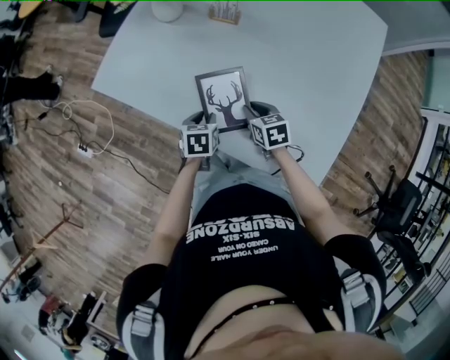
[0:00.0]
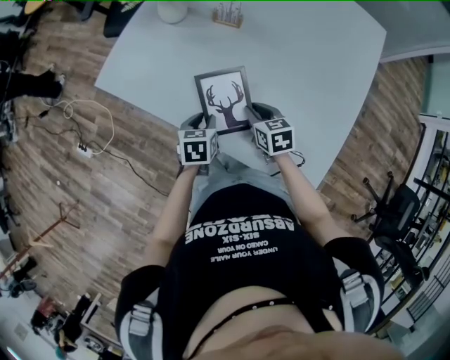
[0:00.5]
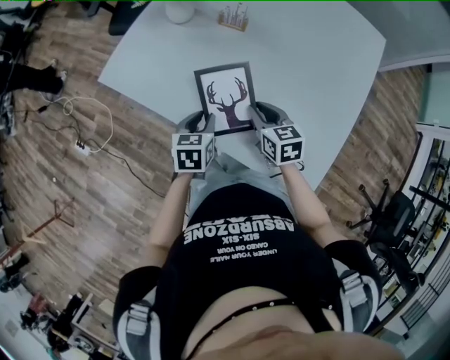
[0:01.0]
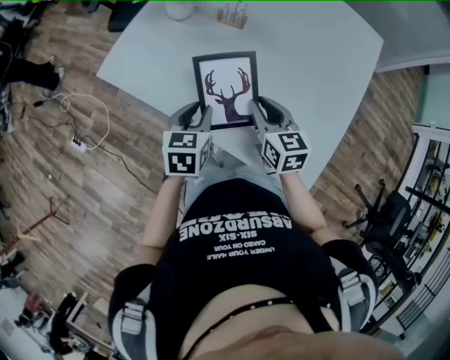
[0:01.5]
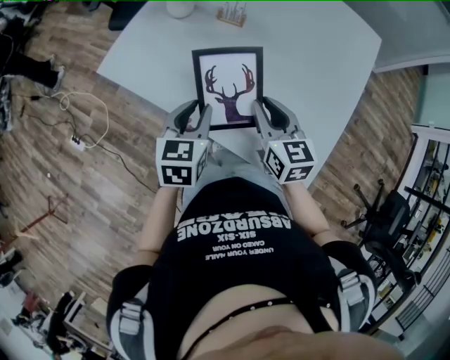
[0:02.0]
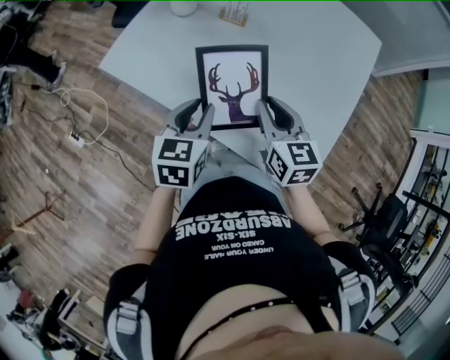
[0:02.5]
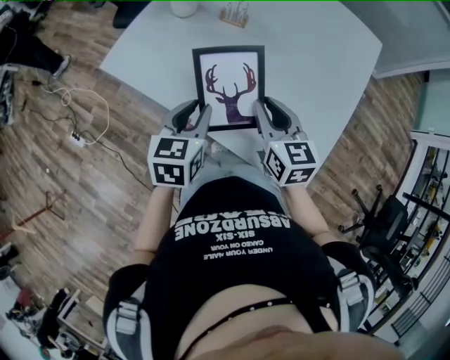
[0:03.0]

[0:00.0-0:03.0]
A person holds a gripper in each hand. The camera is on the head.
0:00.0 to 0:01.5: Both grippers travel together upward, approximately 15 cm. The right gripper swivels about 20 degrees.
0:01.5 to 0:03.0: Both grippers travel together upward, approximately 5 cm.

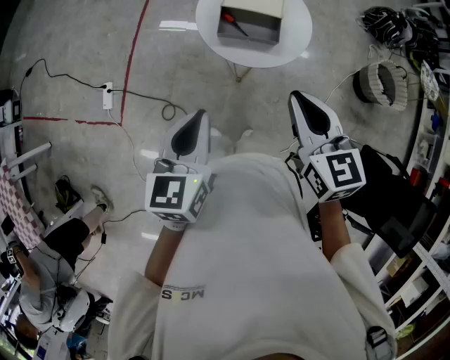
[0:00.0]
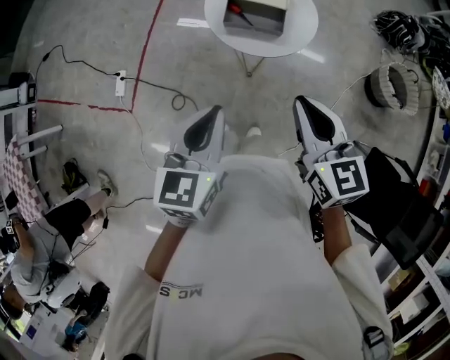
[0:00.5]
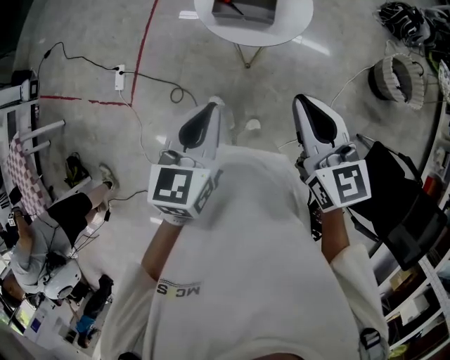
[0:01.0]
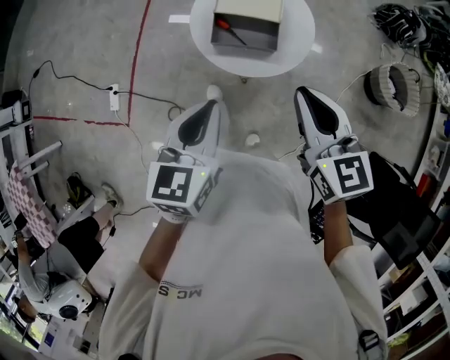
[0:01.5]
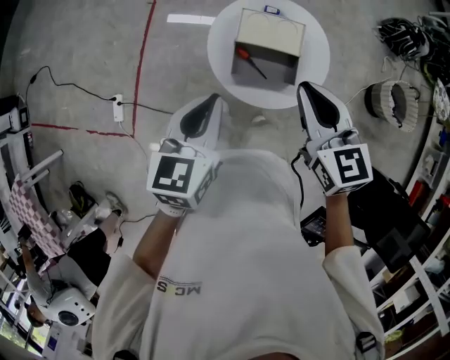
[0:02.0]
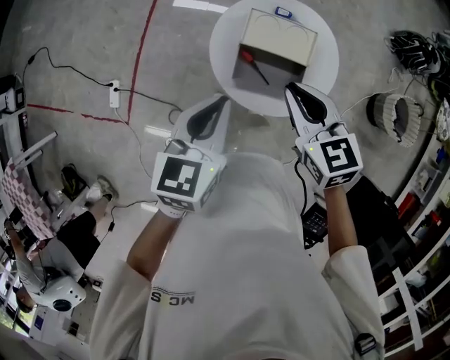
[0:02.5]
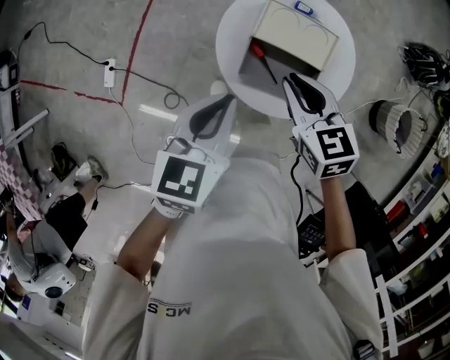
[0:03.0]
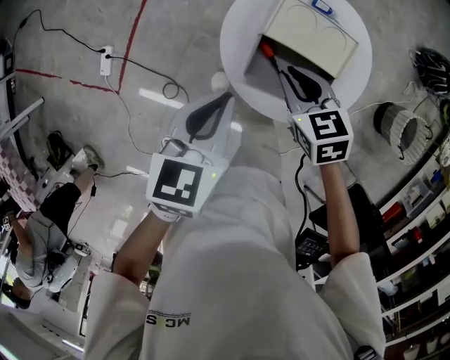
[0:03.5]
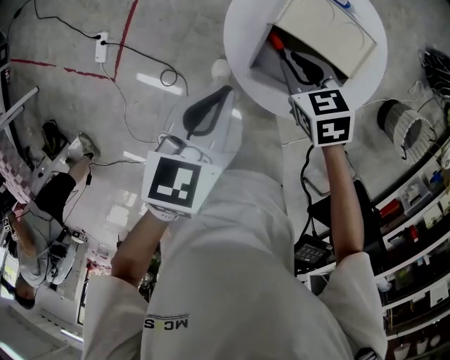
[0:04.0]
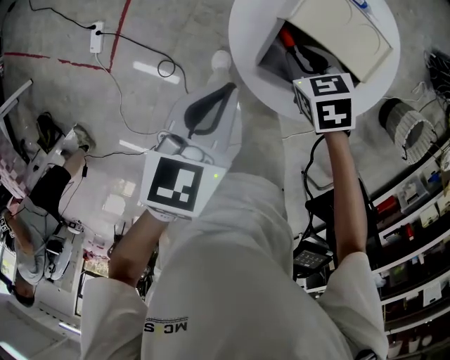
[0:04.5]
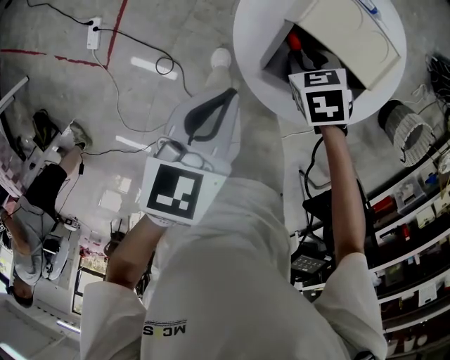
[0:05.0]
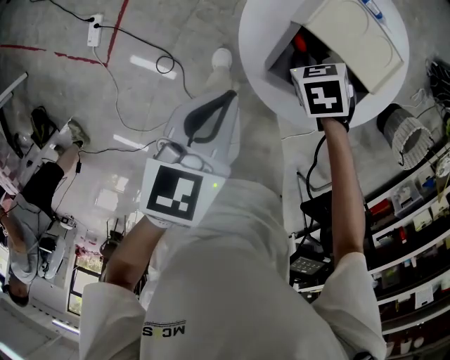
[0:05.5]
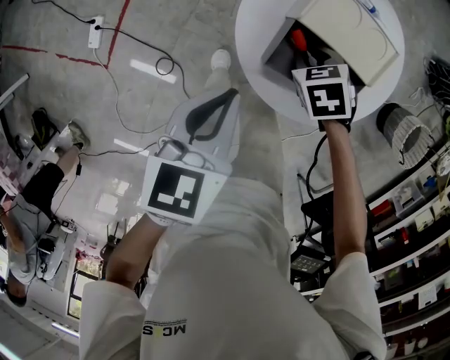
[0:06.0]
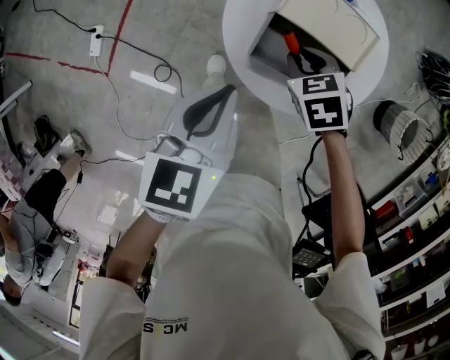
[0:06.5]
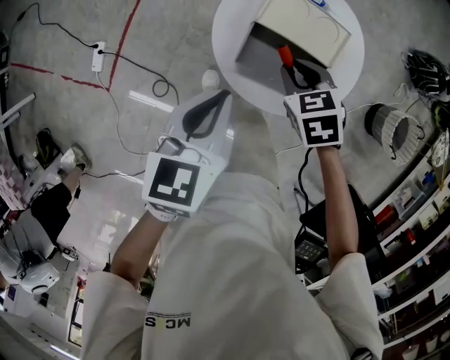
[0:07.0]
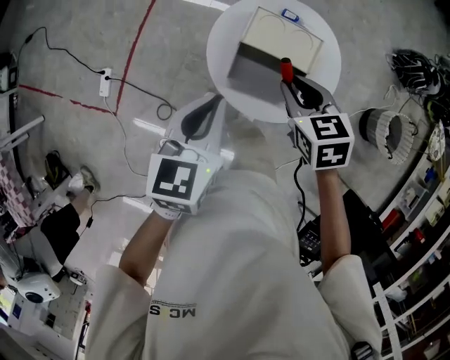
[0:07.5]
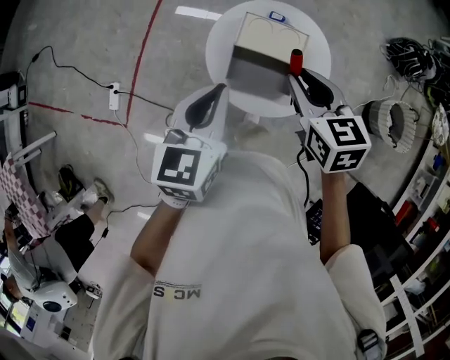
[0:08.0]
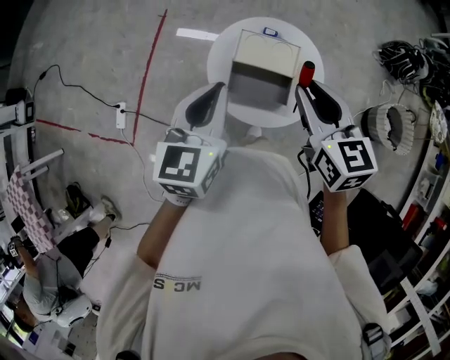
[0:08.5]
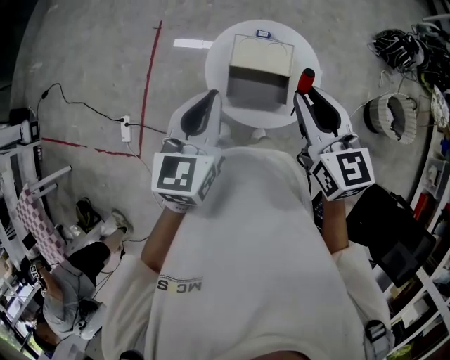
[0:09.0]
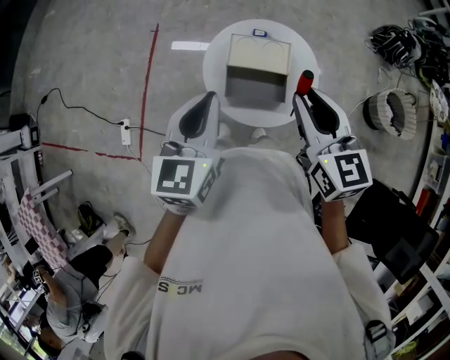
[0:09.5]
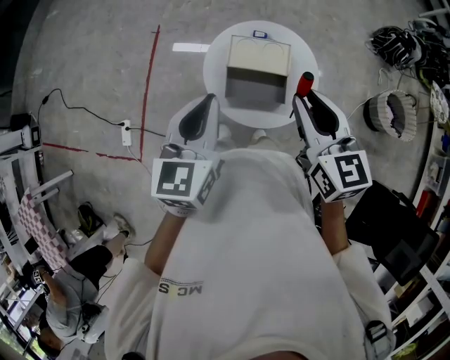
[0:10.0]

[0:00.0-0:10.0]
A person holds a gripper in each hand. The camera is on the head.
0:00.0 to 0:02.0: The two grippers go about 25 cm forward.
0:02.0 to 0:04.0: The right gripper travels downward by about 35 cm, and points its fingers approximately 30 degrees further downward. Meanwhile the left gripper heads downward and forward, covering about 25 cm.
0:04.0 to 0:06.0: The left gripper shifts by some 5 cm; the right gripper shifts roughly 10 cm downward.
0:06.0 to 0:08.0: The right gripper is displaced upward by roughly 40 cm, and tips its fingers upward by about 40 degrees. The left gripper shifts approximately 25 cm upward, and rotates approximately 20 degrees.
0:08.0 to 0:10.0: The right gripper heads upward and backward, covering roughly 10 cm, and changes its angle by some 20 degrees; the left gripper moves upward, approximately 5 cm.

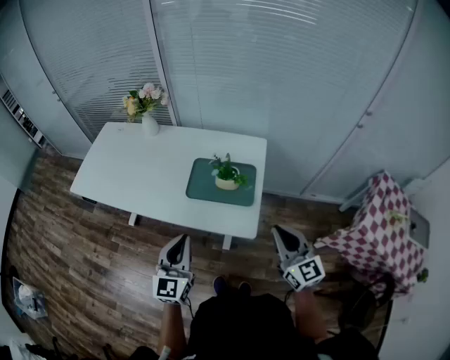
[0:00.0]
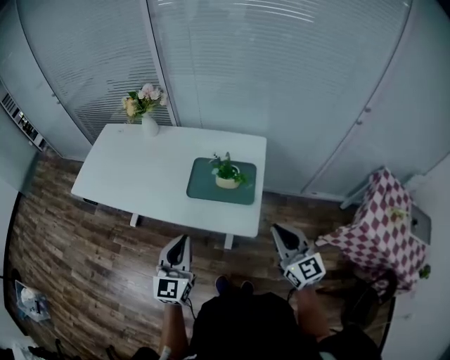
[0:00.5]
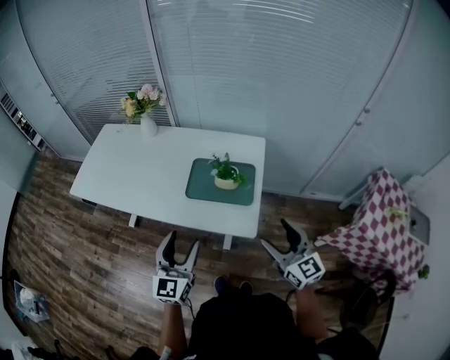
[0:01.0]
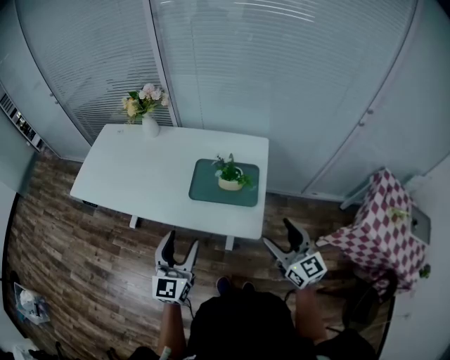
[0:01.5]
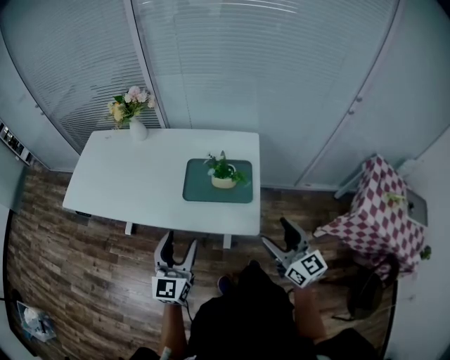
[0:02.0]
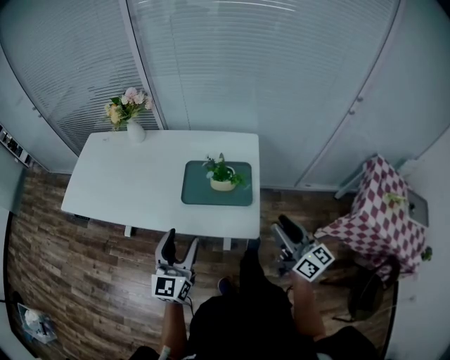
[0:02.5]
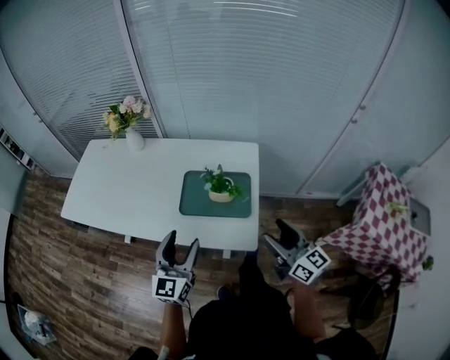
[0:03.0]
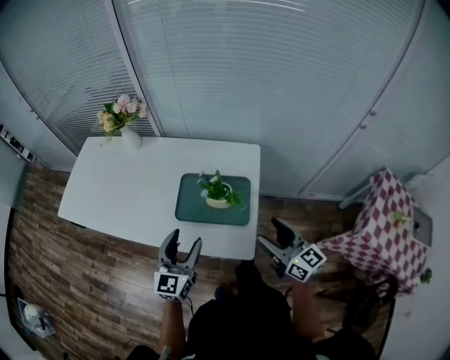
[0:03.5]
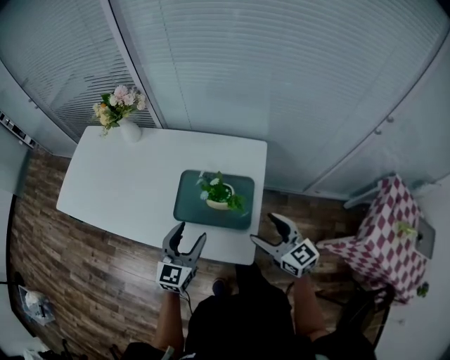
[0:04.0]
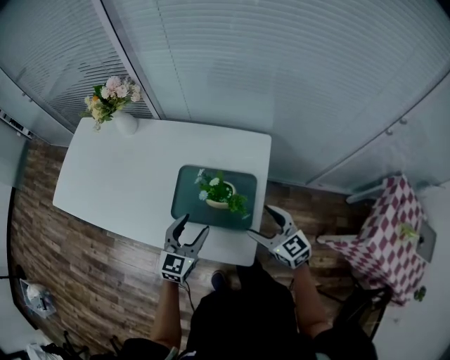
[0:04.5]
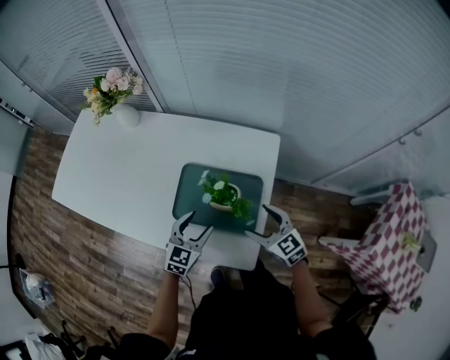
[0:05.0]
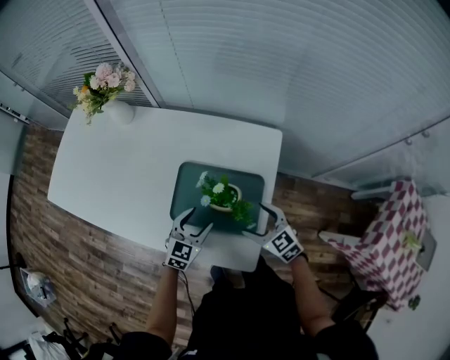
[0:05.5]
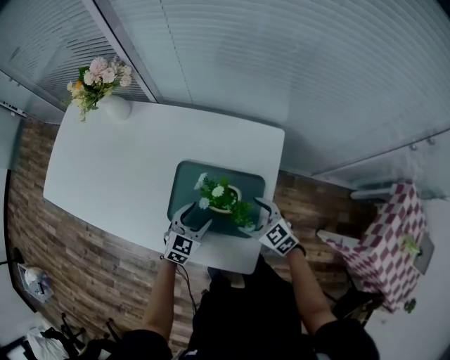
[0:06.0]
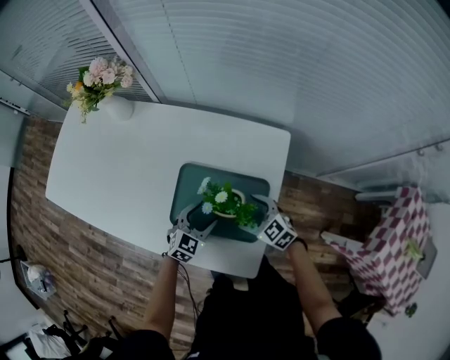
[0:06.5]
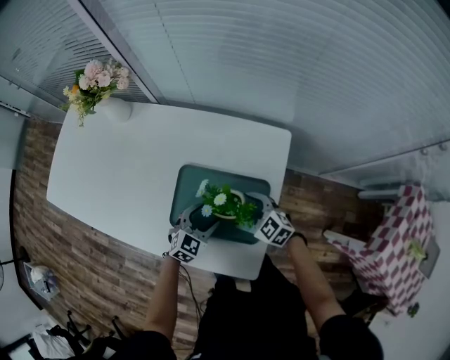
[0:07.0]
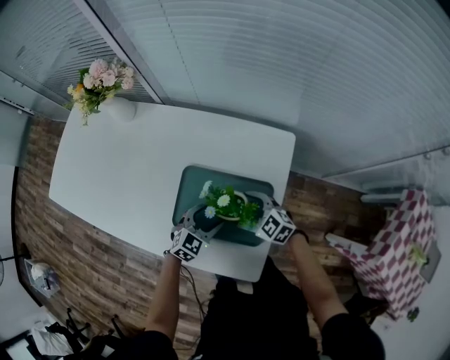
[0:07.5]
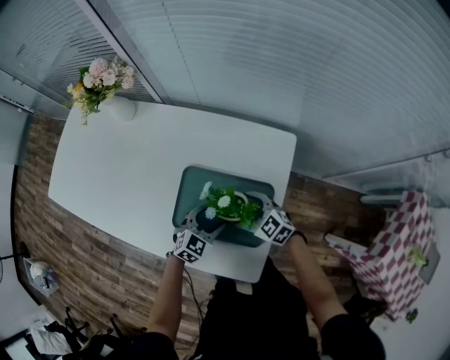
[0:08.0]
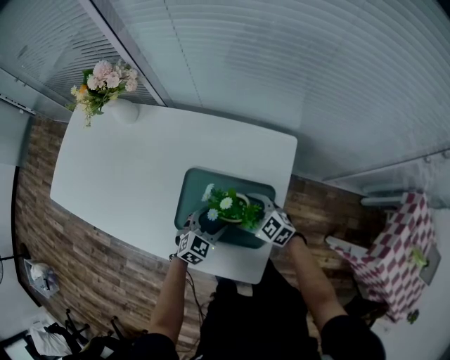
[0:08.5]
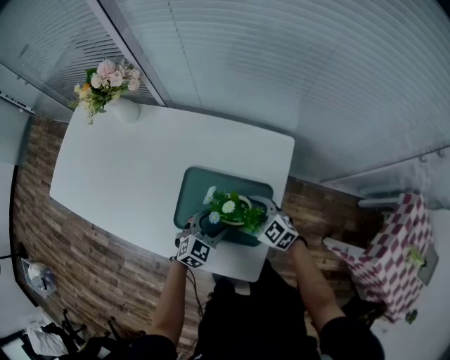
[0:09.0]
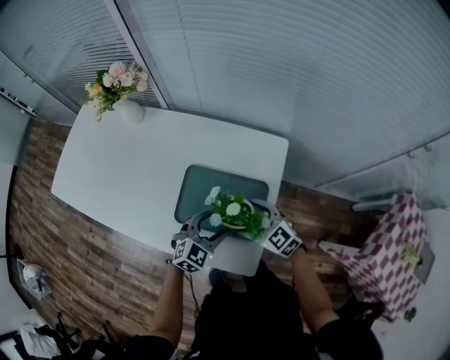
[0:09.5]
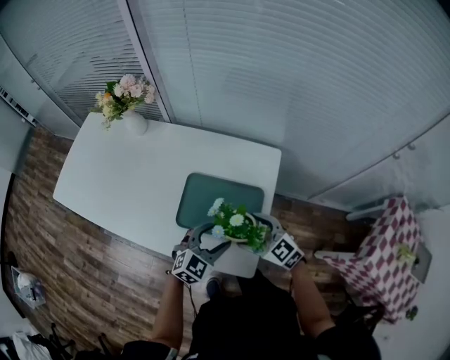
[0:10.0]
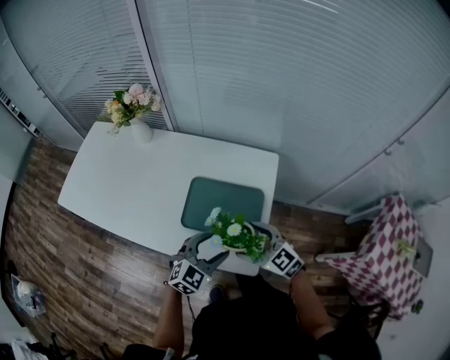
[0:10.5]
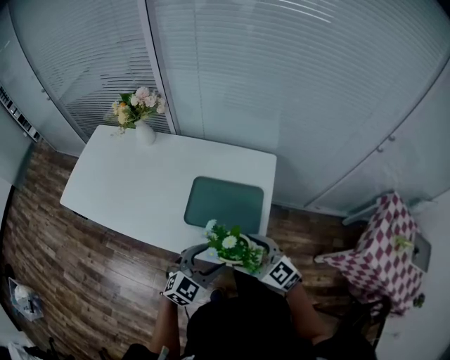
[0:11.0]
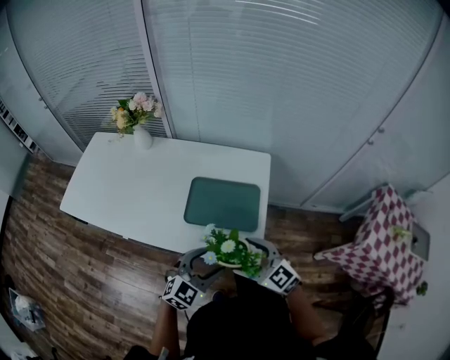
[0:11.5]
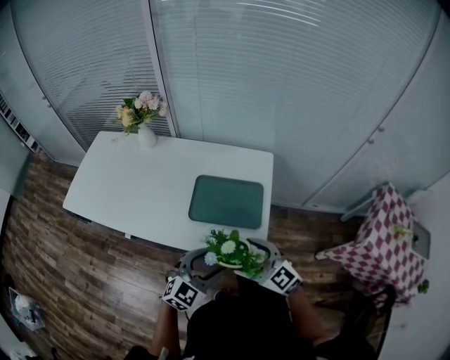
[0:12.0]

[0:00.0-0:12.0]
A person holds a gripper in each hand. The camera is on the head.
0:00.0 to 0:02.0: The right gripper opens. Meanwhile the left gripper opens its fingers.
0:02.0 to 0:04.0: The right gripper travels forward and downward by approximately 15 cm, changes its angle by some 20 degrees, and closes and opens again. Meanwhile the left gripper goes about 20 cm forward, to the right and downward.
0:04.0 to 0:06.0: The grippers both shift downward and forward by about 20 cm. The right gripper rotates roughly 30 degrees. The left gripper rotates roughly 20 degrees.
0:06.0 to 0:08.0: The right gripper changes place by roughly 5 cm.
0:08.0 to 0:10.0: The grippers both shift upward and backward by about 15 cm.
0:10.0 to 0:12.0: The grippers both shift backward, to the left and upward by approximately 20 cm.

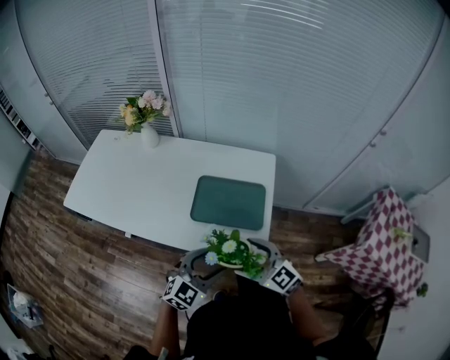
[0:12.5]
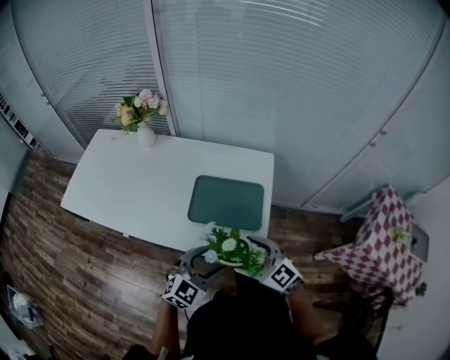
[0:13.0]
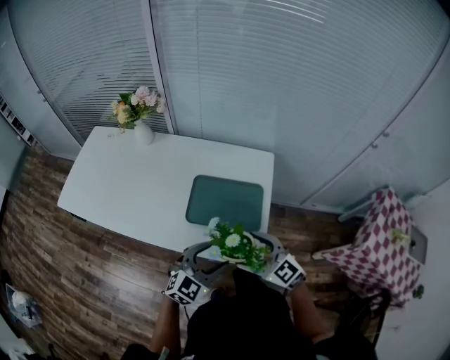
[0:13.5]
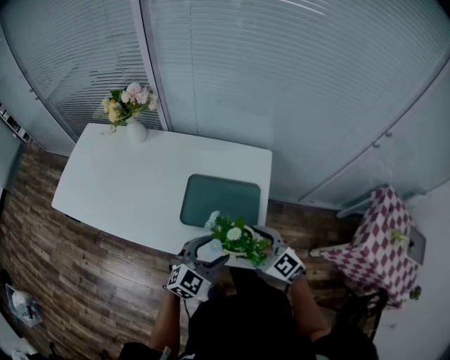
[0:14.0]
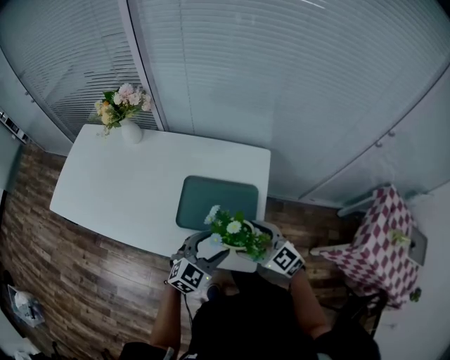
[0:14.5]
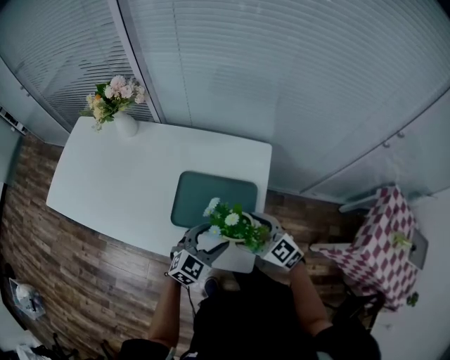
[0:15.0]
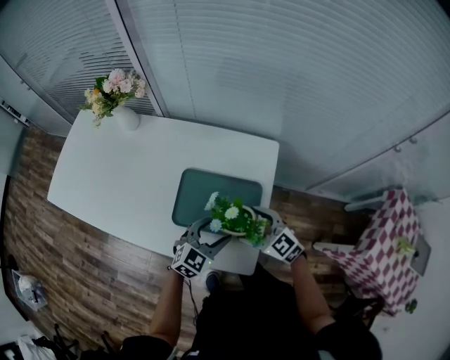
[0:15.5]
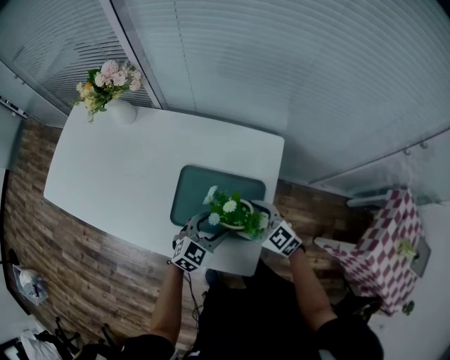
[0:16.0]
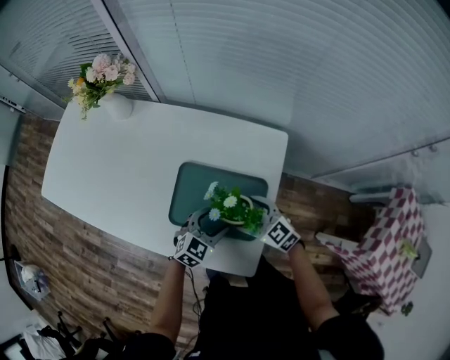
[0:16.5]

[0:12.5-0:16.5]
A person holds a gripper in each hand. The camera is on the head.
0:12.5 to 0:14.5: The grippers both shift forward and to the right by some 10 cm.
0:14.5 to 0:16.5: Both grippers move downward and forward, some 15 cm.
